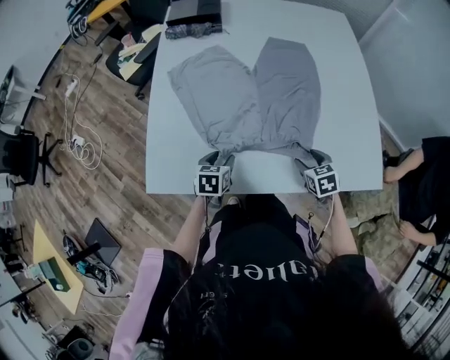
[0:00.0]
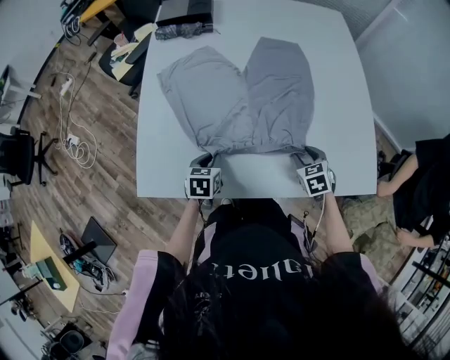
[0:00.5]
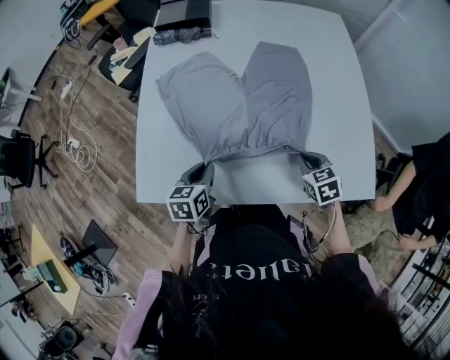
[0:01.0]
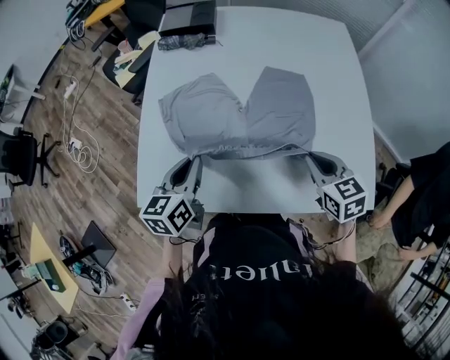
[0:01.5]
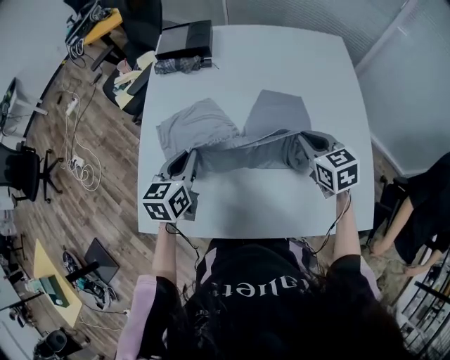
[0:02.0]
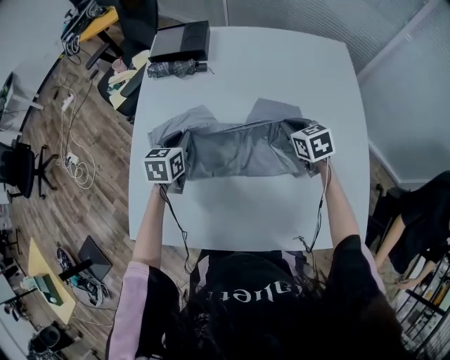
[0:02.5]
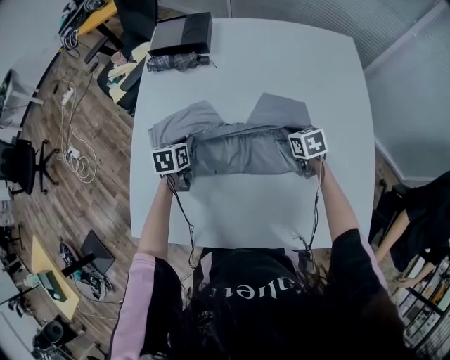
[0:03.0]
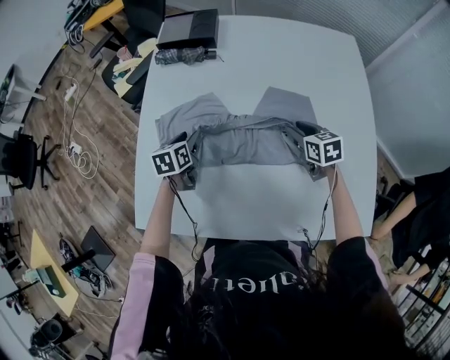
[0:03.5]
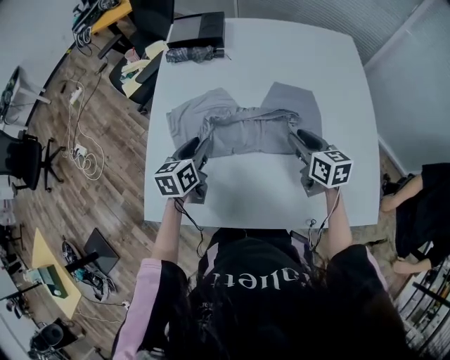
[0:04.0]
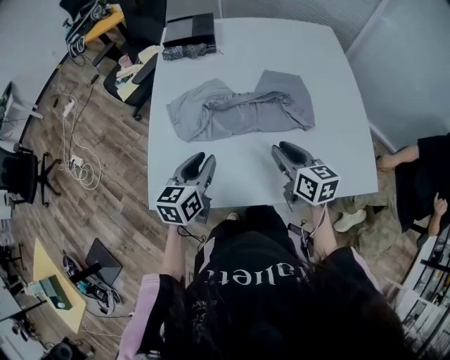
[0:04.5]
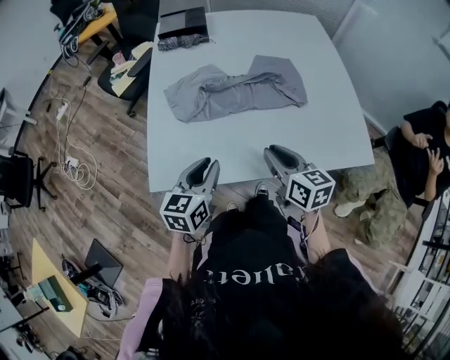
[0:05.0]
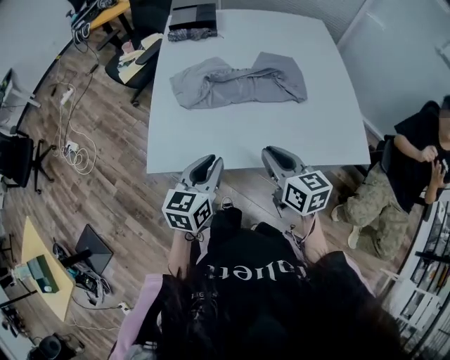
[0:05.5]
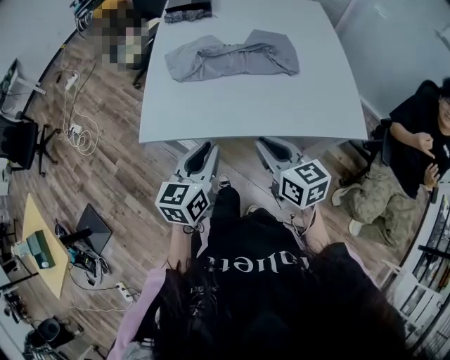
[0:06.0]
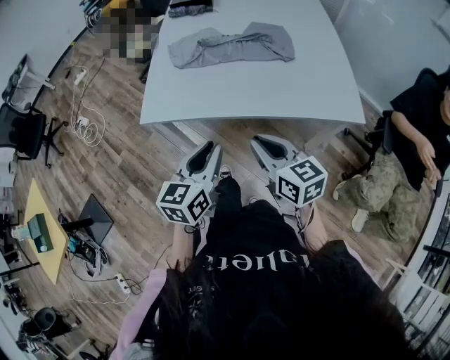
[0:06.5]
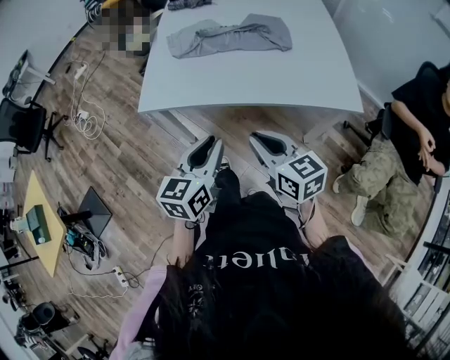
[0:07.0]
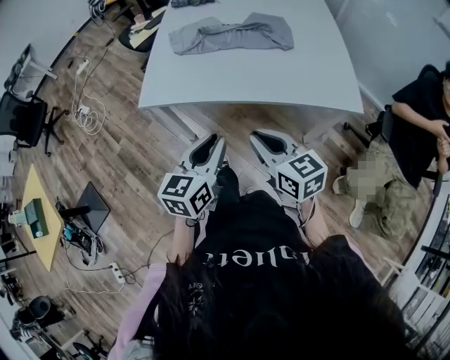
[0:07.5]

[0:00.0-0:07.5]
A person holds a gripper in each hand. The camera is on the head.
0:00.0 to 0:02.0: The left gripper goes about 25 cm upward and forward, rotates approximately 20 degrees, and closes up; the right gripper travels forward and upward by about 25 cm, and closes.
0:02.0 to 0:04.0: The left gripper is displaced downward by about 5 cm, and opens its fingers. Meanwhile the right gripper travels downward and back again, roughly 15 cm each way, swivels about 20 degrees, and opens.
0:04.0 to 0:05.5: The right gripper travels backward and to the left by about 30 cm, and closes. Meanwhile the left gripper moves backward, about 30 cm.
0:05.5 to 0:07.5: Both grippers travel together backward, roughly 20 cm.

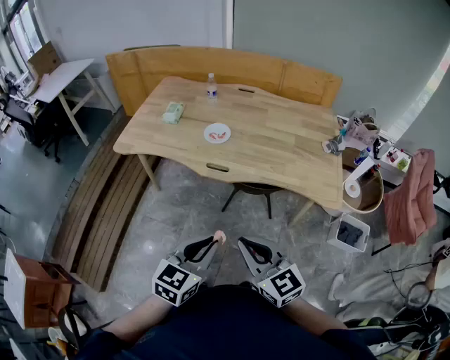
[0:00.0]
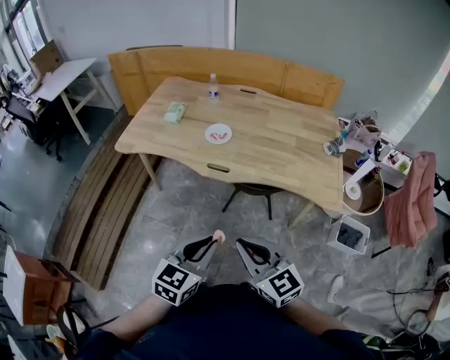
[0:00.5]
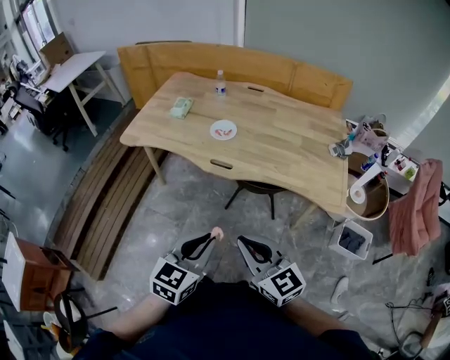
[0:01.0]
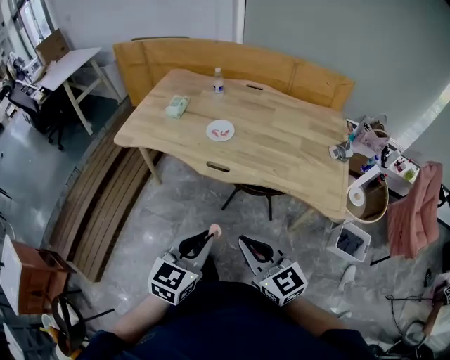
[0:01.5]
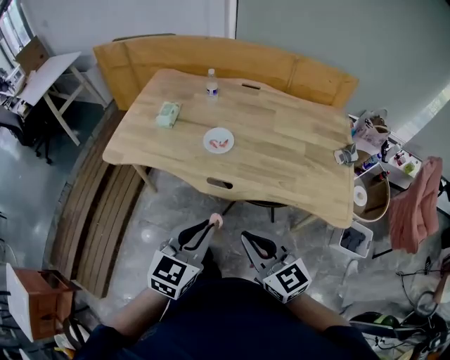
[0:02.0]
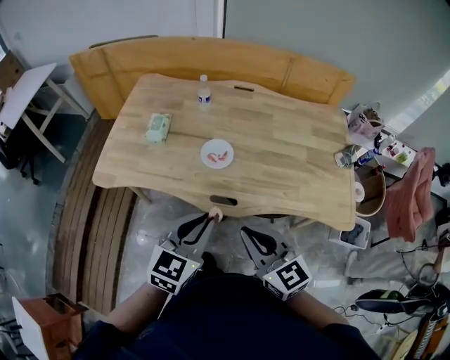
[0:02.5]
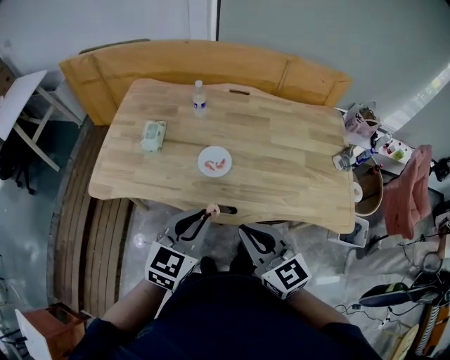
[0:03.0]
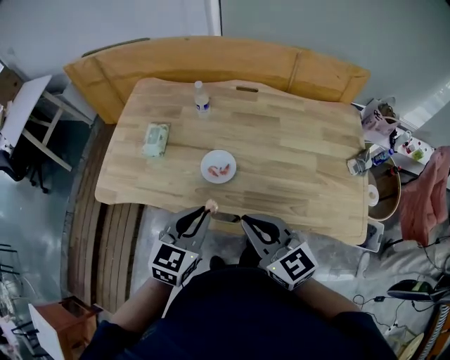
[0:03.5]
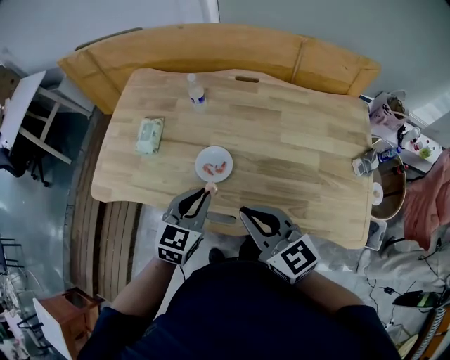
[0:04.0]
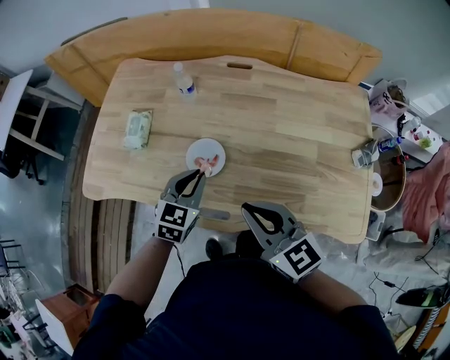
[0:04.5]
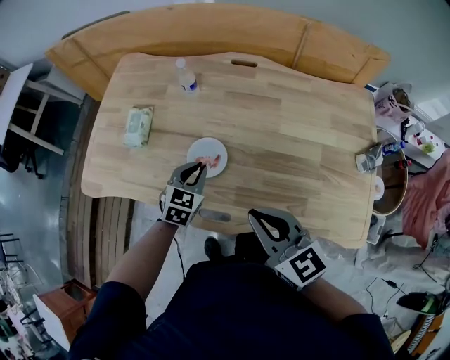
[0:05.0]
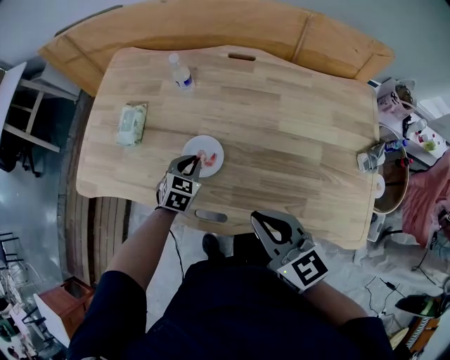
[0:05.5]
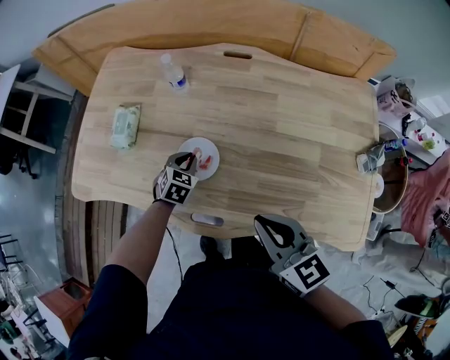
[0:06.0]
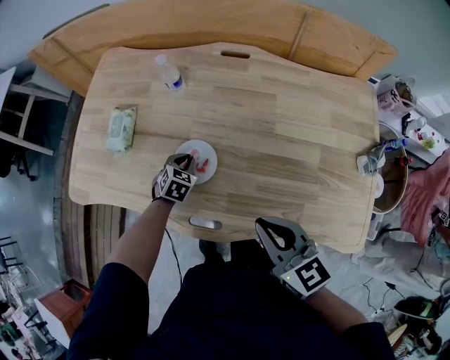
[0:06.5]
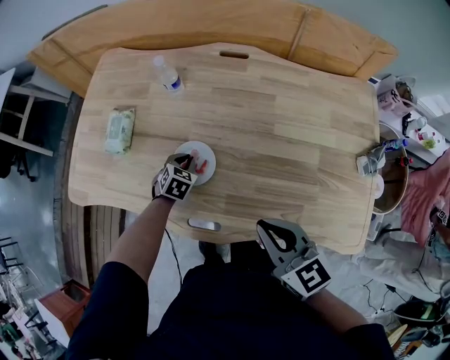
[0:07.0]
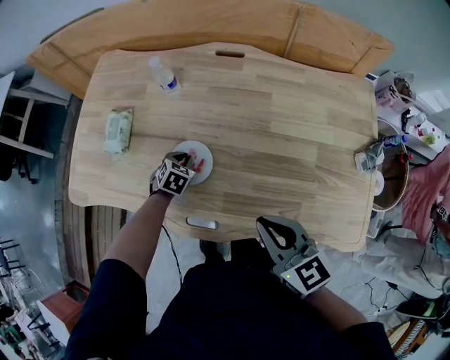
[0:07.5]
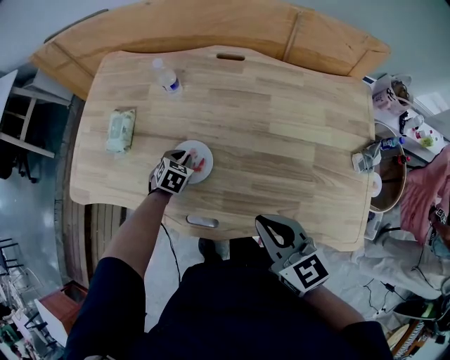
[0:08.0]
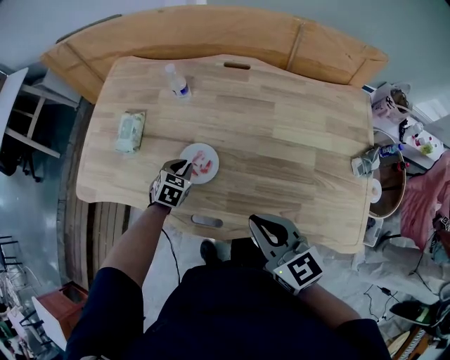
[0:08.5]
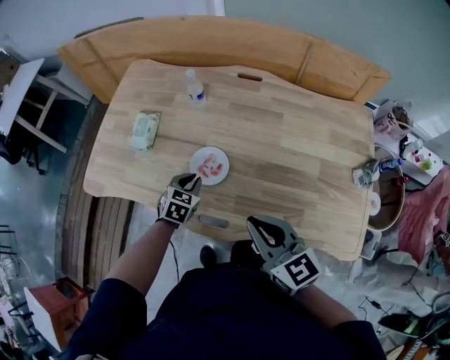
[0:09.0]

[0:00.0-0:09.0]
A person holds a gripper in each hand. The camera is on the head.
0:00.0 to 0:02.0: Both grippers move forward, roughly 20 cm.
0:02.0 to 0:04.5: Both grippers move forward, some 35 cm.
0:04.5 to 0:07.0: The right gripper moves downward and to the right, some 10 cm. The left gripper heads downward and forward, covering some 25 cm, and turns by about 30 degrees.
0:07.0 to 0:09.0: The right gripper is displaced upward and to the left by approximately 5 cm. Meanwhile the left gripper goes some 15 cm upward and backward.

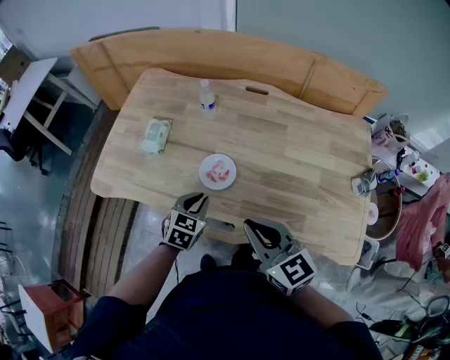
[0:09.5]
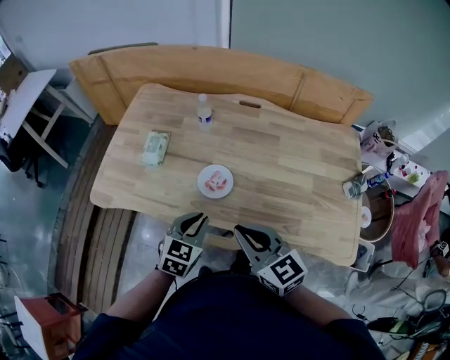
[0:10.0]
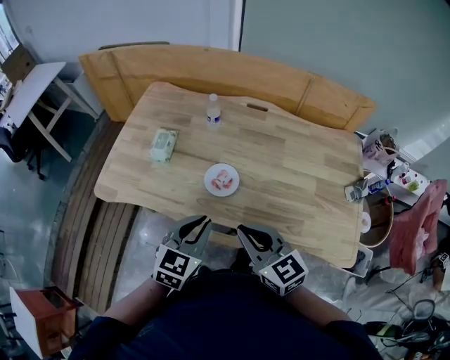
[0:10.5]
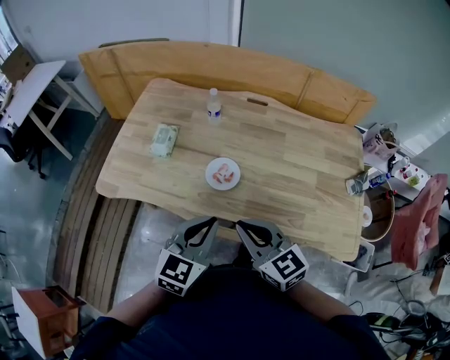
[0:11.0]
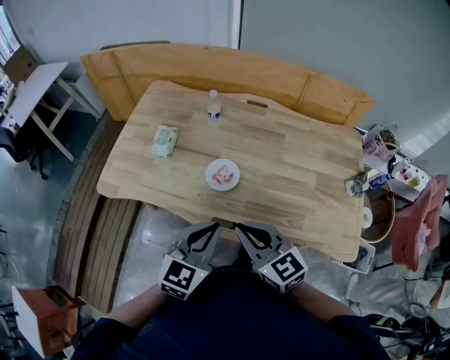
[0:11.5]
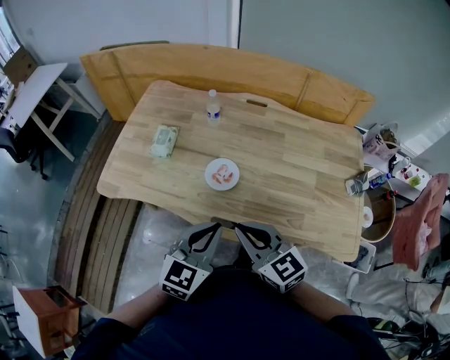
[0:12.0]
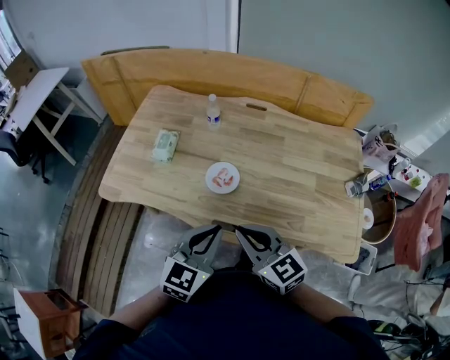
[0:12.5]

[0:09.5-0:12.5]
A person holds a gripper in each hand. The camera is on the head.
0:09.5 to 0:11.0: The right gripper shifts approximately 5 cm to the left, while the left gripper moves upward and backward, about 20 cm, and turns by roughly 20 degrees.
0:11.0 to 0:12.5: The grippers move only a little.

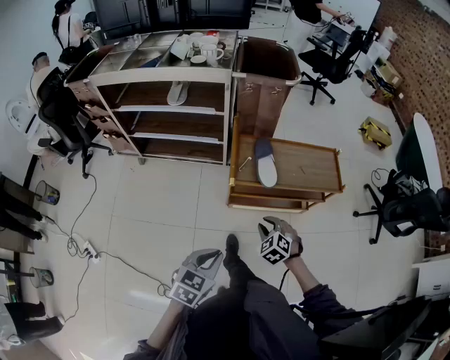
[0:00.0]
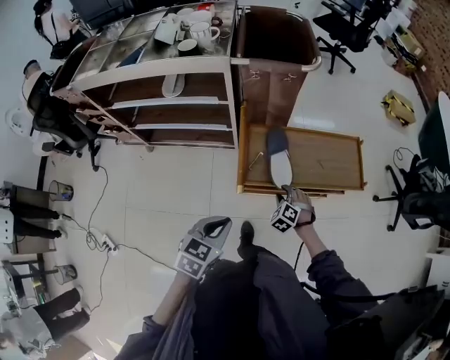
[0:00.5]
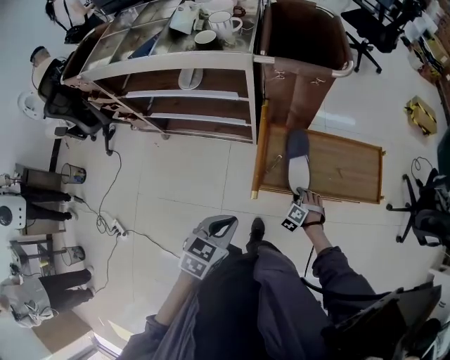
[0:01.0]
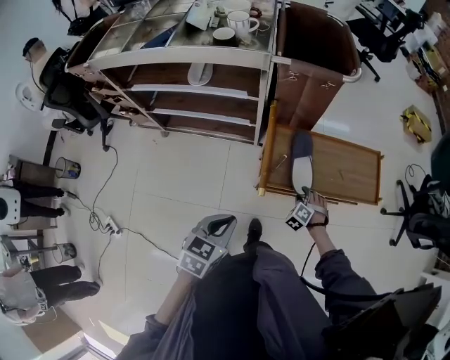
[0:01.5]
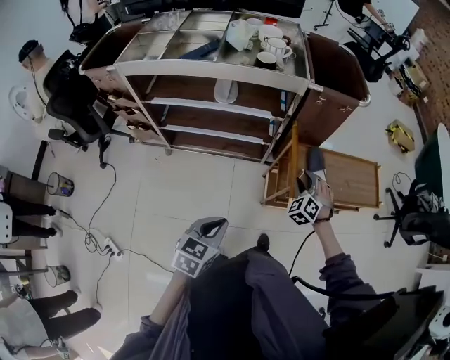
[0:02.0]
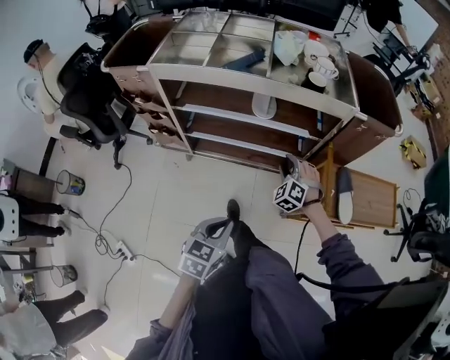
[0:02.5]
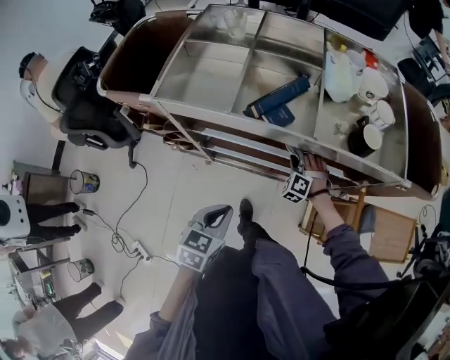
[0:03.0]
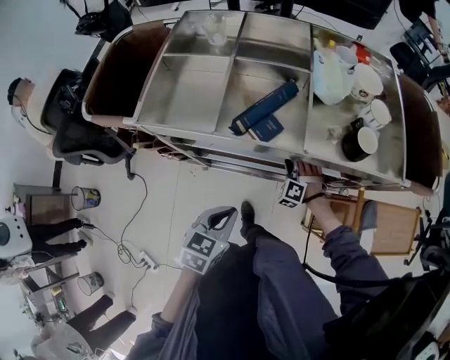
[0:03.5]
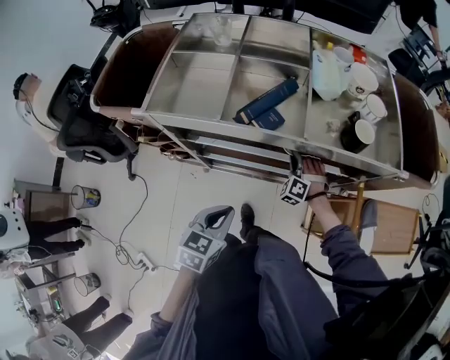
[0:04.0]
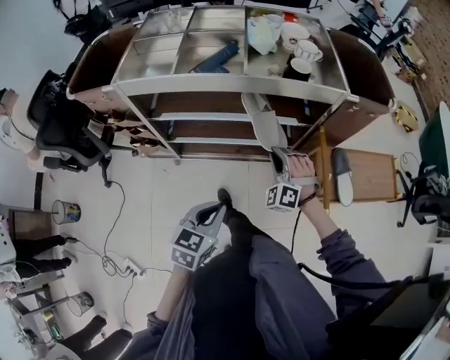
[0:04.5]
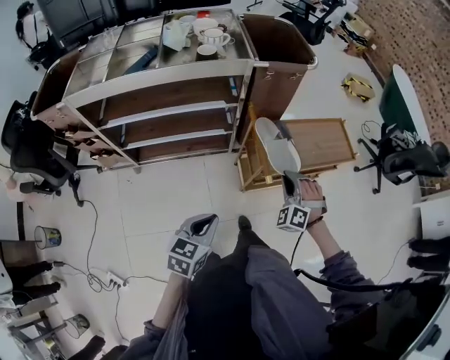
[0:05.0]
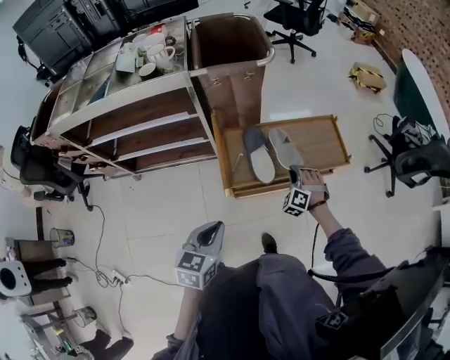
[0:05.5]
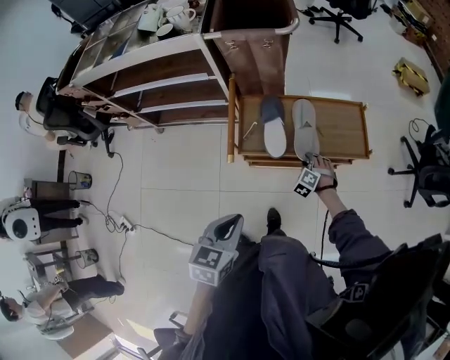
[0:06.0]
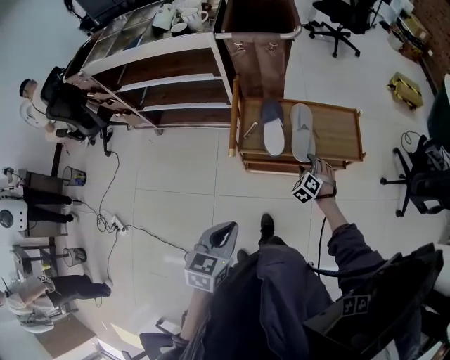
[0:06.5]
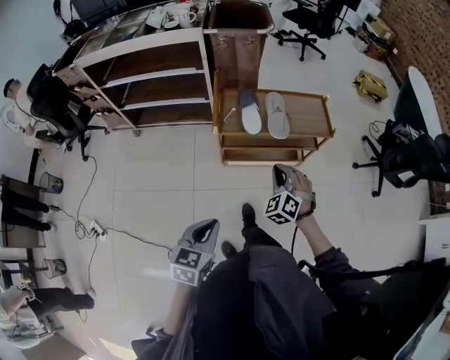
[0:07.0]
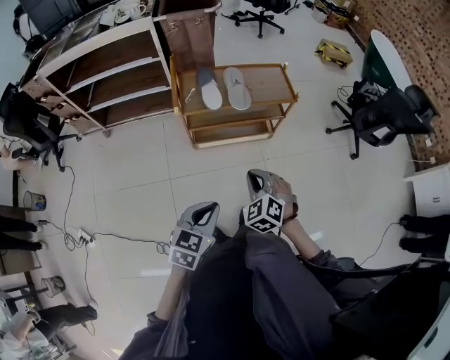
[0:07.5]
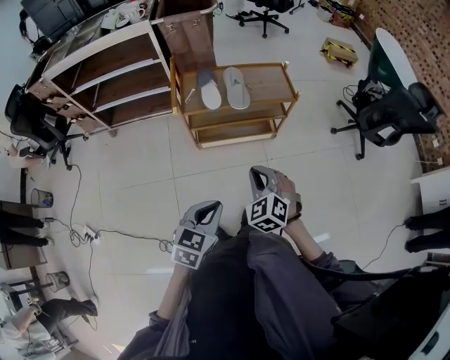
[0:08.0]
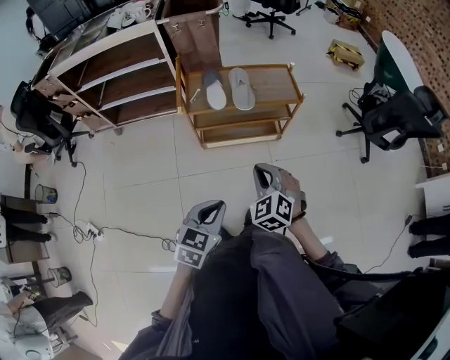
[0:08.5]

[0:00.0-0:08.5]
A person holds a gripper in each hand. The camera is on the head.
0:00.0 to 0:02.0: The left gripper ends up approximately 35 cm from where it was.
0:02.0 to 0:04.0: The left gripper shifts by approximately 40 cm.
0:04.0 to 0:06.5: The left gripper changes place by about 70 cm.
0:06.5 to 0:08.5: The left gripper ends up some 20 cm from where it was, and swivels about 20 degrees.
